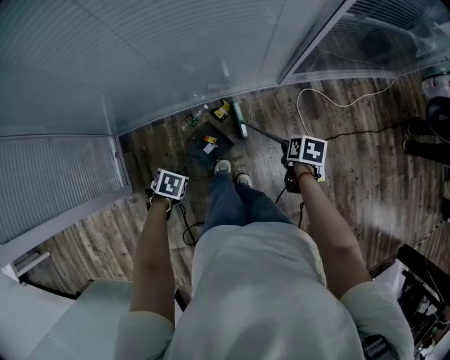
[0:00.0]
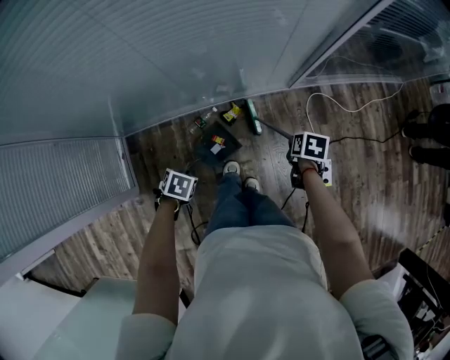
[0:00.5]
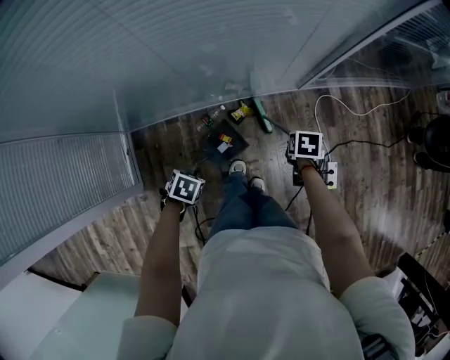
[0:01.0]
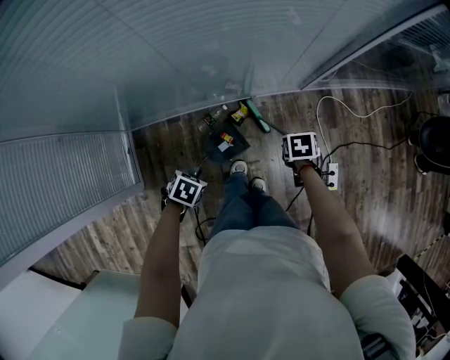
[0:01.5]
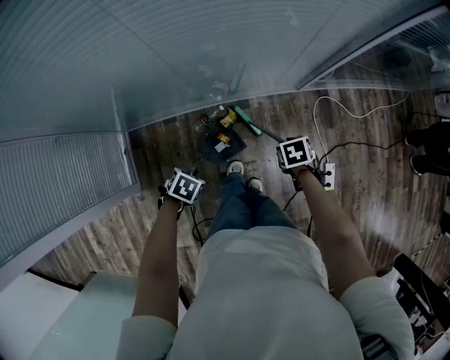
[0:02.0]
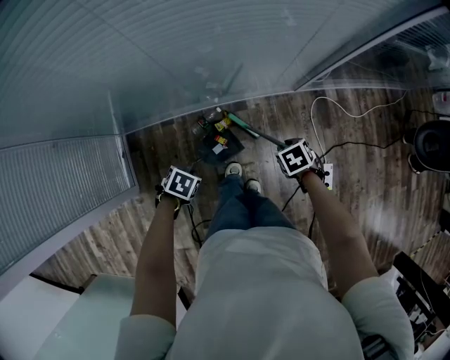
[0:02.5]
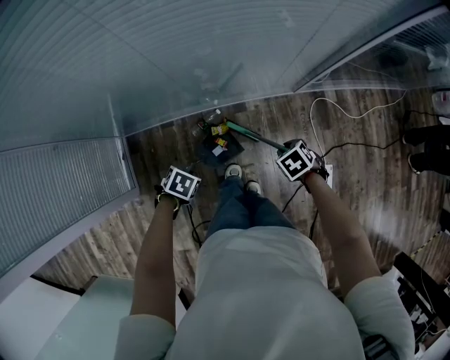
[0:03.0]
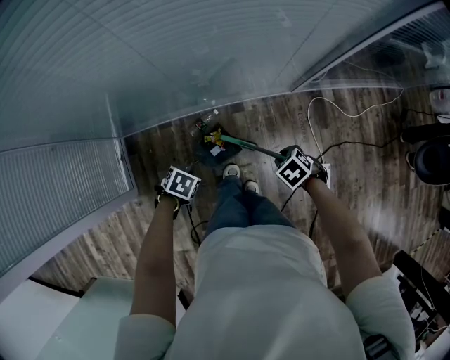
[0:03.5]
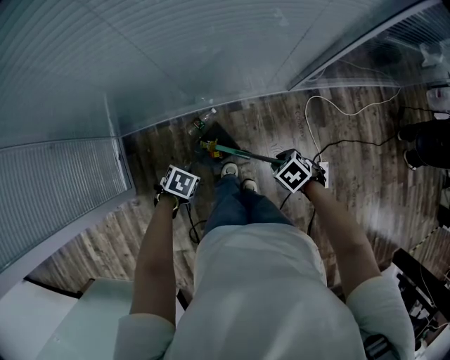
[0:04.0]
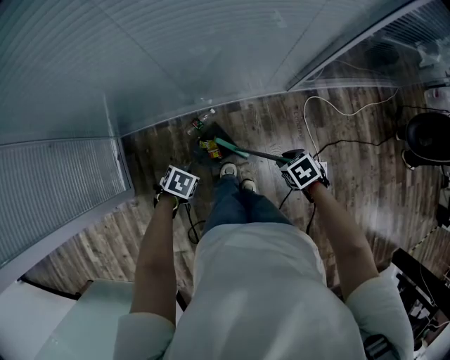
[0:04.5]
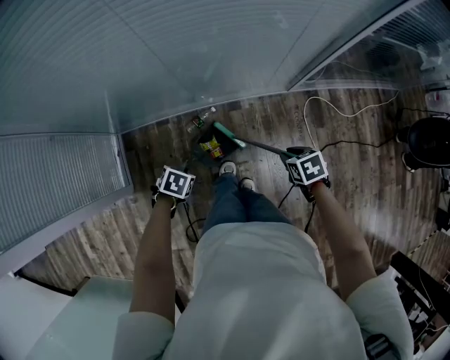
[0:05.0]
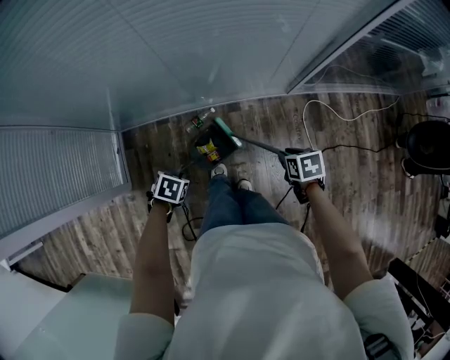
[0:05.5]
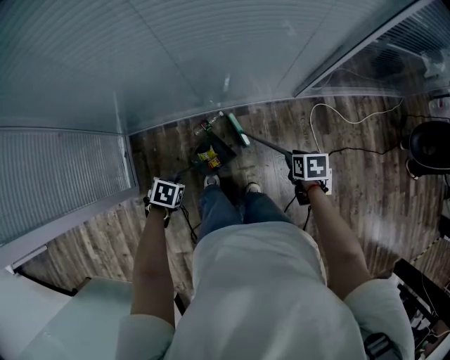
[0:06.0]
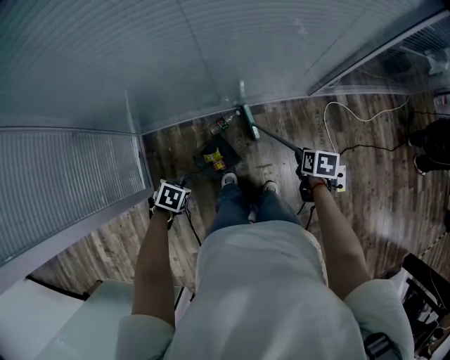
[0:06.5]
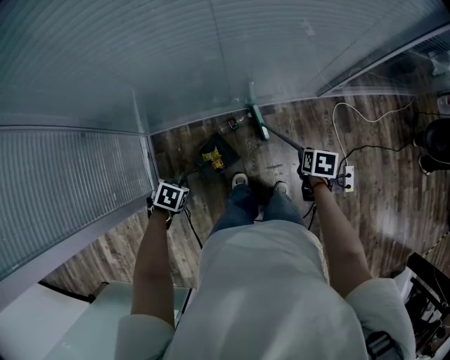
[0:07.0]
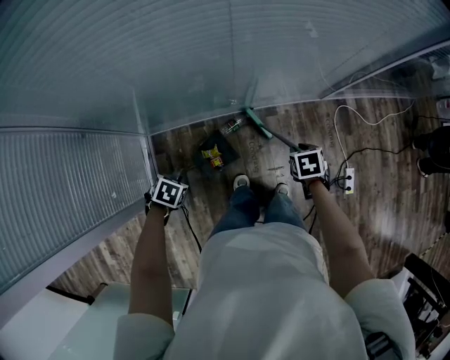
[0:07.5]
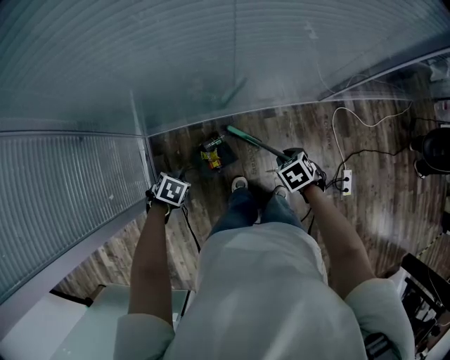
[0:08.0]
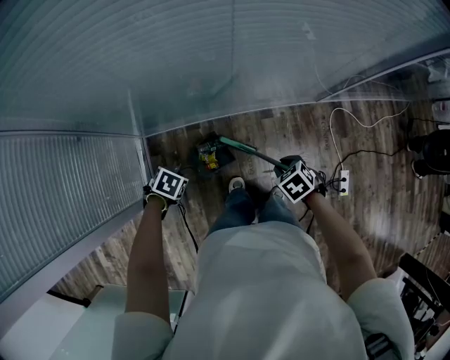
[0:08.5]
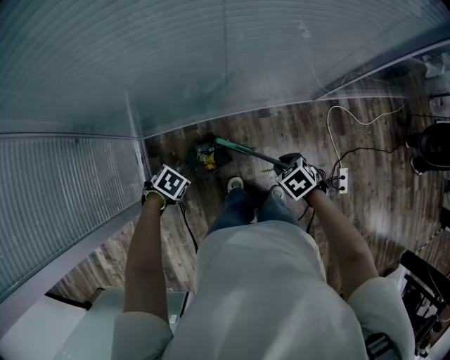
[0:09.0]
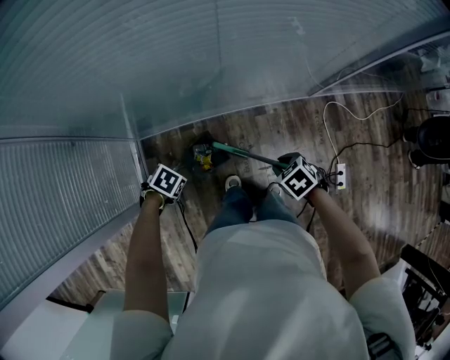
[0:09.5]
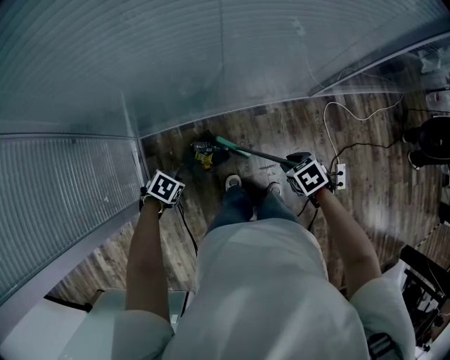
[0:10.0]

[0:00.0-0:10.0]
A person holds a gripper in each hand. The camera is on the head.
0:00.0 to 0:02.0: The right gripper moves roughly 15 cm, and swivels about 30 degrees.
0:02.0 to 0:04.0: The right gripper shifts by about 5 cm, and changes its angle by roughly 30 degrees.
0:04.0 to 0:06.0: The right gripper twists about 40 degrees clockwise, seen from behind.
0:06.0 to 0:08.0: The right gripper shifts by roughly 25 cm, and changes its angle by about 40 degrees.
0:08.0 to 0:10.0: The right gripper shifts by about 5 cm.

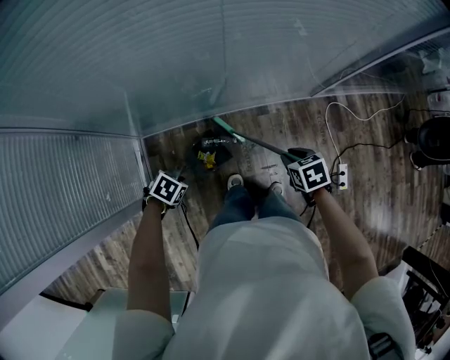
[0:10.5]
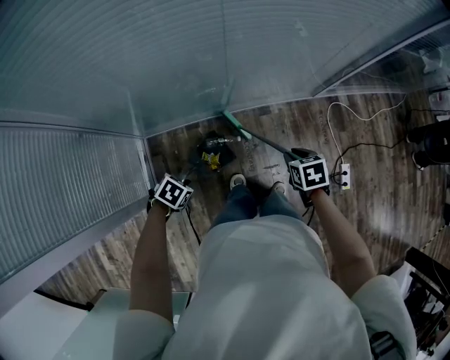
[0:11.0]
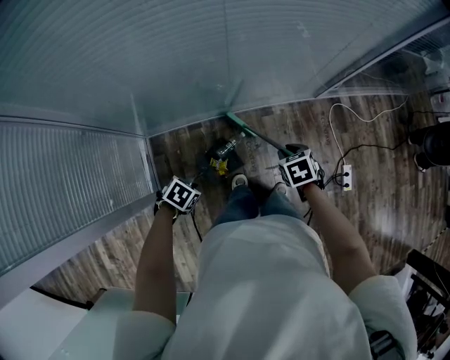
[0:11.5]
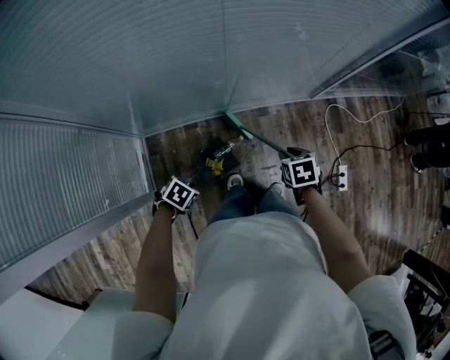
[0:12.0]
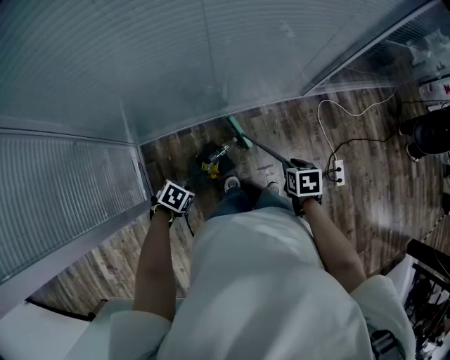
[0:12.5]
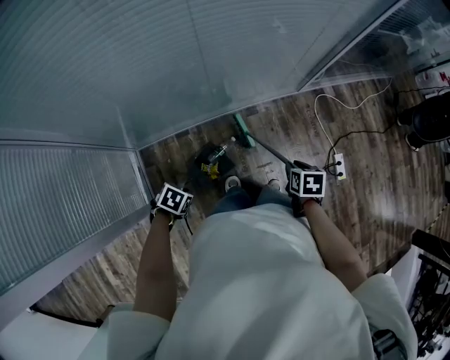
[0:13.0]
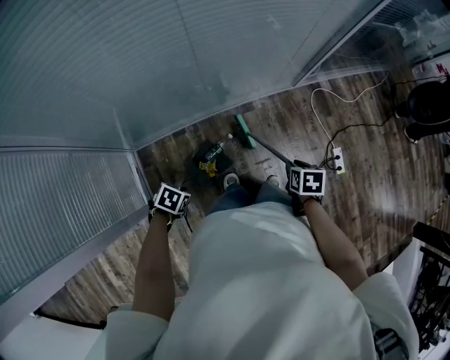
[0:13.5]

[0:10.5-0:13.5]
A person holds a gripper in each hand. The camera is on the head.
0:12.0 to 0:13.5: The right gripper ends up some 10 cm from where it was, and turns by roughly 20 degrees.

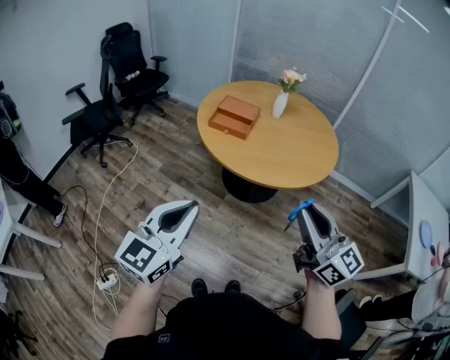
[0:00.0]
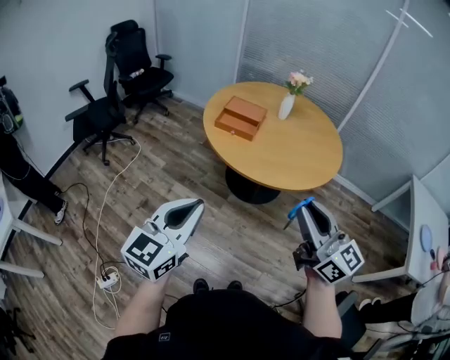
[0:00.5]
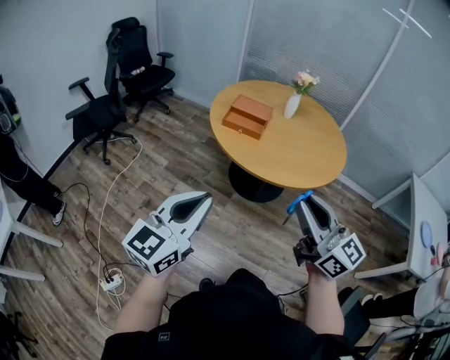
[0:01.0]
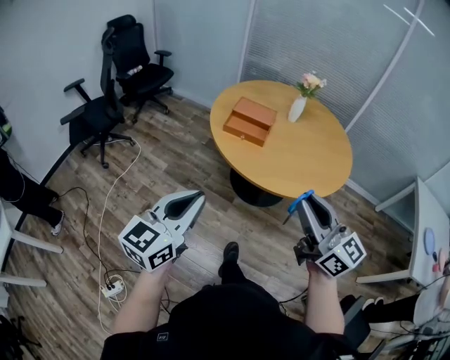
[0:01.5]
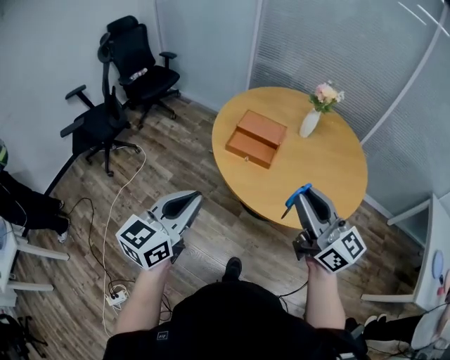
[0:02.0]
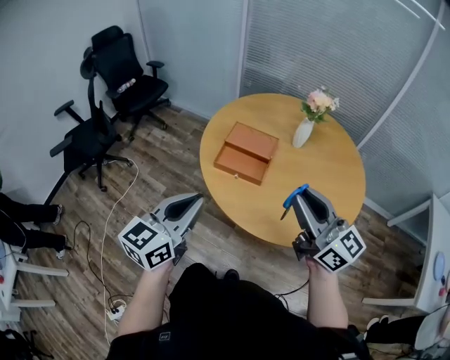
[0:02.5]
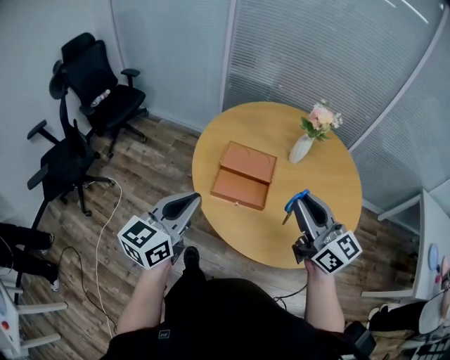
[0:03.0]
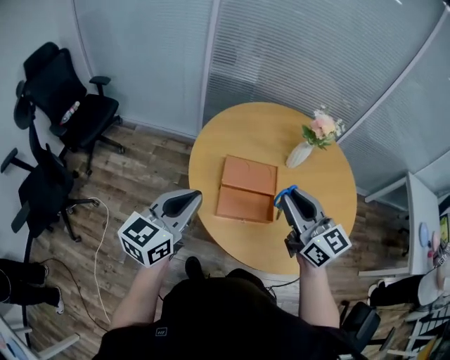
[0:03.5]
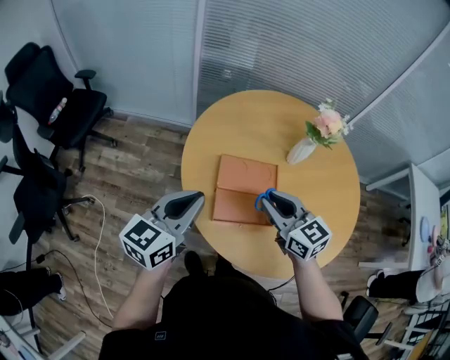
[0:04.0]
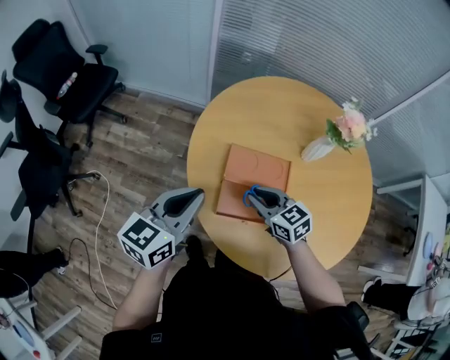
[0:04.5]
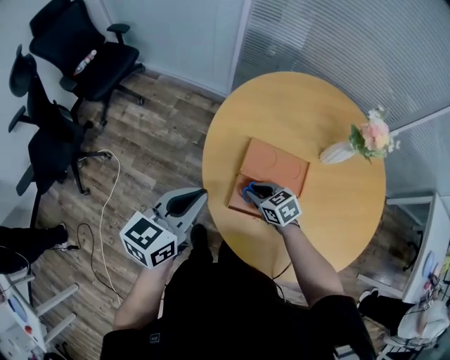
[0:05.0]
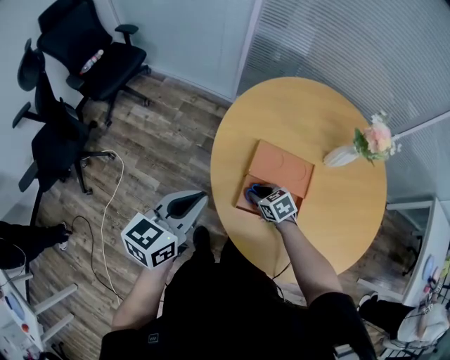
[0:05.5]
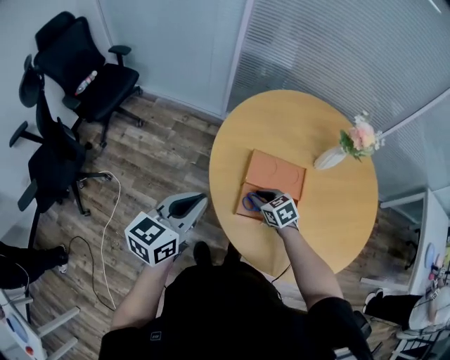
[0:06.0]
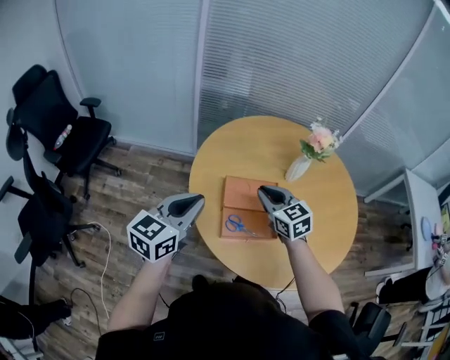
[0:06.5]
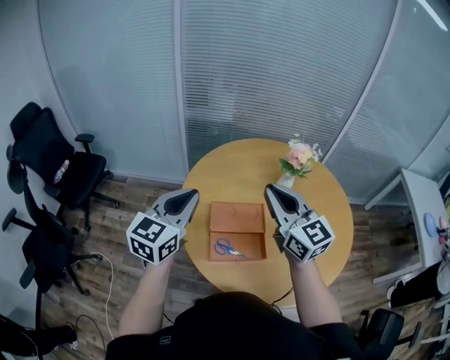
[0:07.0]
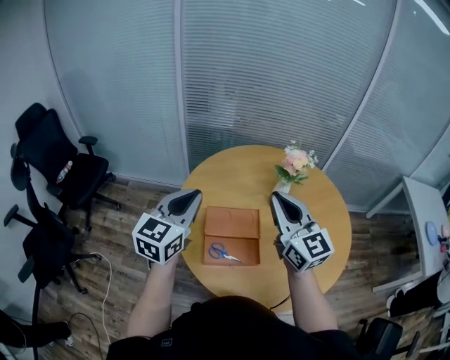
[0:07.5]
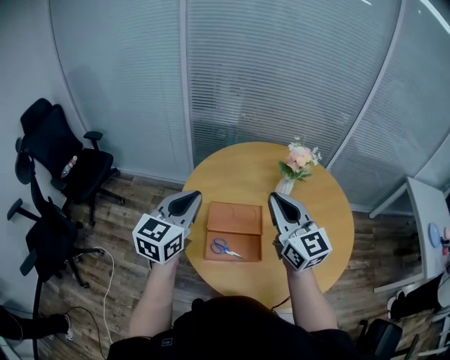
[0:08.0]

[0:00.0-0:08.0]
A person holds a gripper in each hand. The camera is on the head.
0:00.0 to 0:02.0: The grippers both shift forward by some 25 cm.
0:02.0 to 0:04.0: The two grippers travel together, forward, about 40 cm. The right gripper rotates some 30 degrees. Meanwhile the left gripper rotates some 20 degrees.
0:04.0 to 0:06.0: The right gripper is displaced downward by some 20 cm, and tips its fingers downward by some 30 degrees, while the left gripper travels to the left by about 10 cm.
0:06.0 to 0:08.0: The right gripper is displaced upward by about 40 cm, and points its fingers about 60 degrees further upward; the left gripper travels upward, to the right and forward by roughly 20 cm.

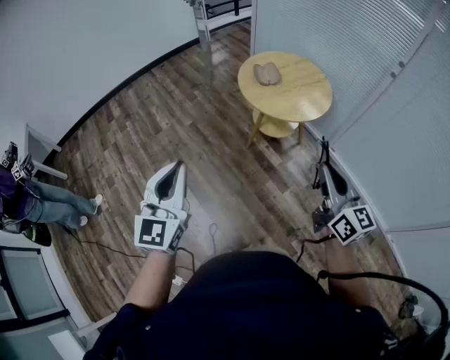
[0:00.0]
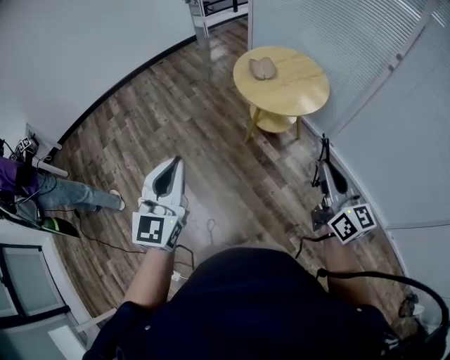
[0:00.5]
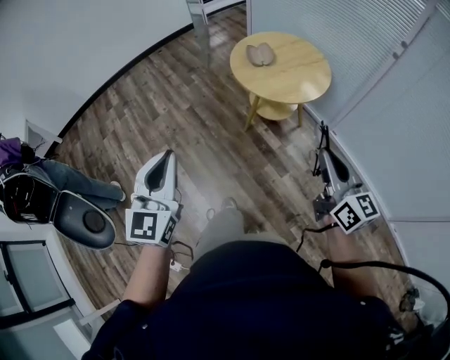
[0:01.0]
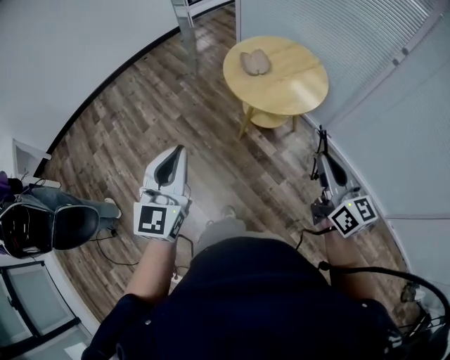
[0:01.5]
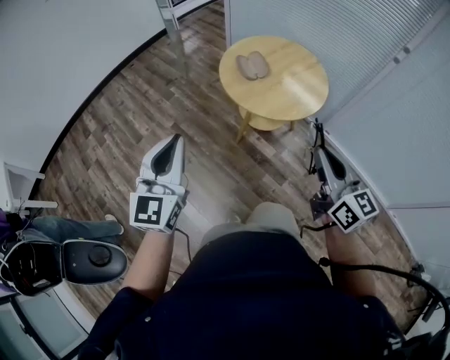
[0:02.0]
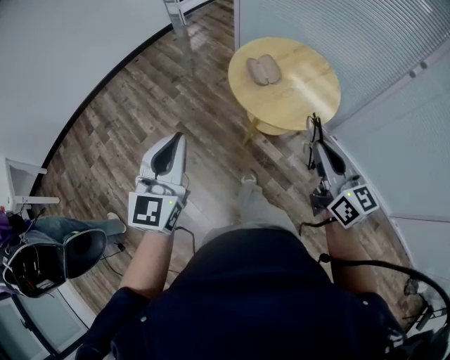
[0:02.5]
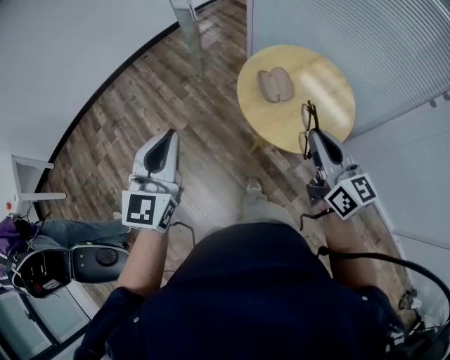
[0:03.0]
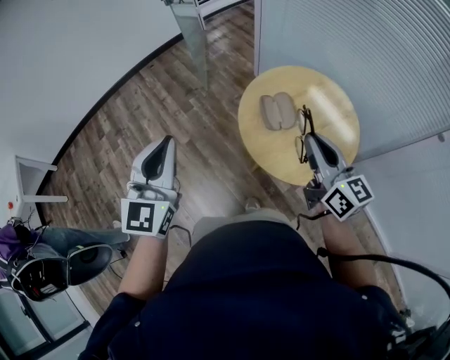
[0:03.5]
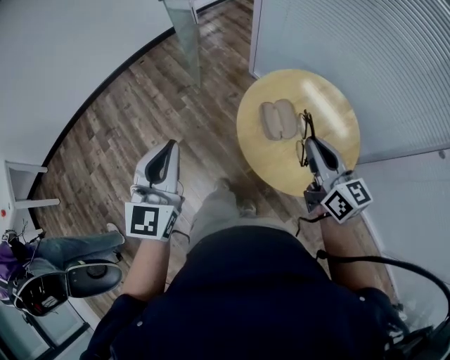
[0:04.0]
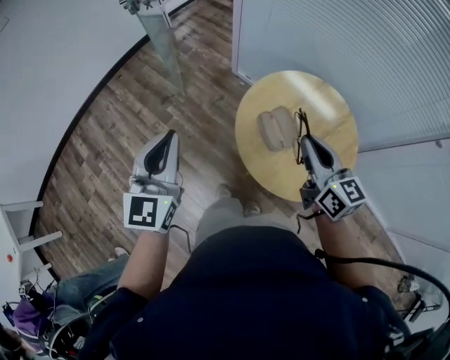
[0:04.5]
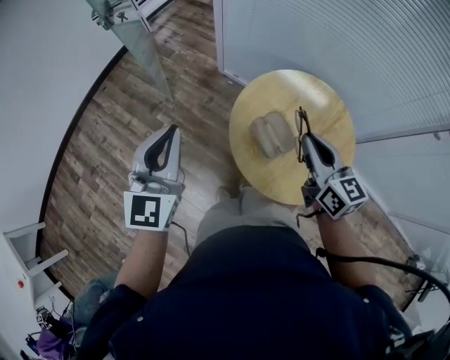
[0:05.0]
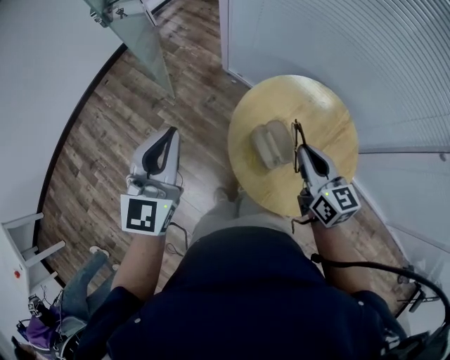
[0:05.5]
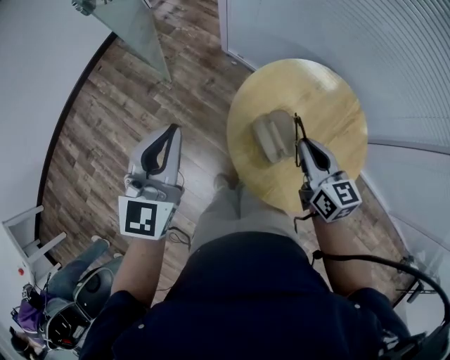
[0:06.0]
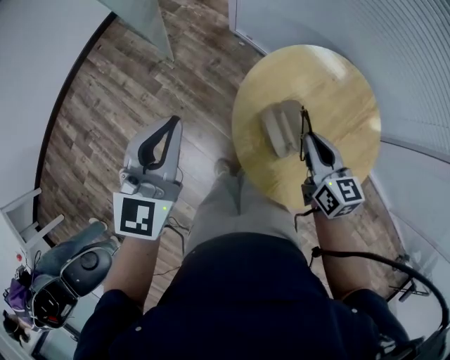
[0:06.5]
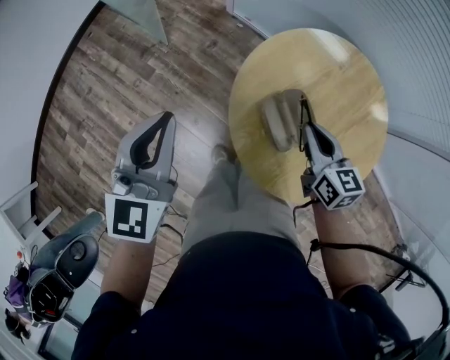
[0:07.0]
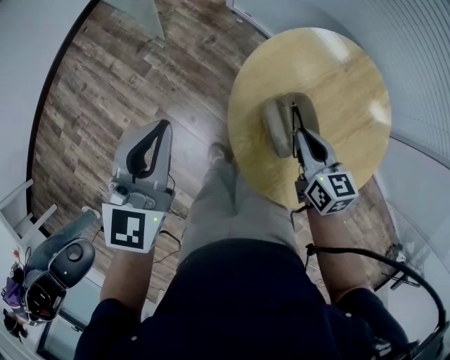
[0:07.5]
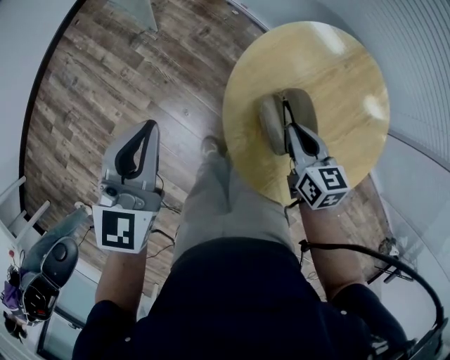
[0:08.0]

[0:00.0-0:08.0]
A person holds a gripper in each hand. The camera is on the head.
0:00.0 to 0:02.0: The two grippers go approximately 20 cm forward.
0:02.0 to 0:04.0: Both grippers move forward, roughly 40 cm.
0:04.0 to 0:06.0: The right gripper goes roughly 20 cm forward and downward, and rotates some 20 degrees; the left gripper goes approximately 25 cm forward.
0:06.0 to 0:08.0: Both grippers travel together downward, some 15 cm.
